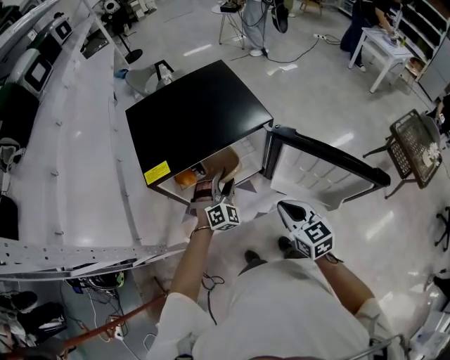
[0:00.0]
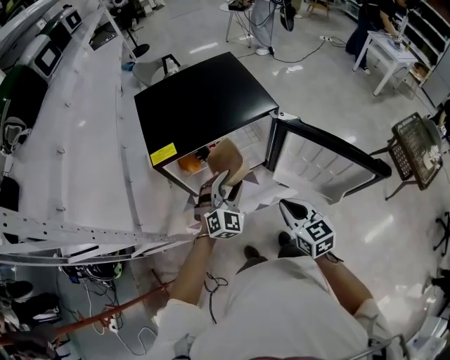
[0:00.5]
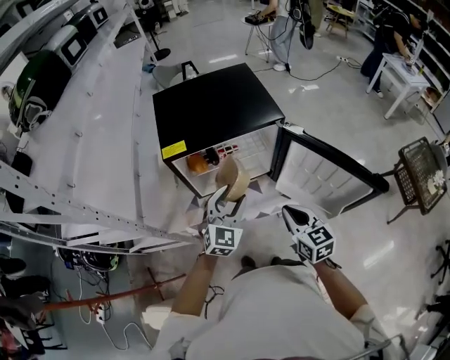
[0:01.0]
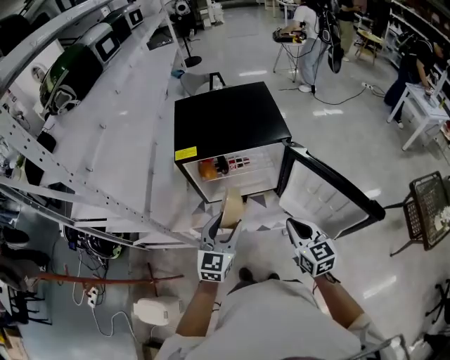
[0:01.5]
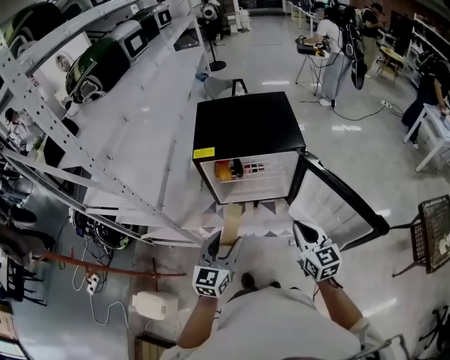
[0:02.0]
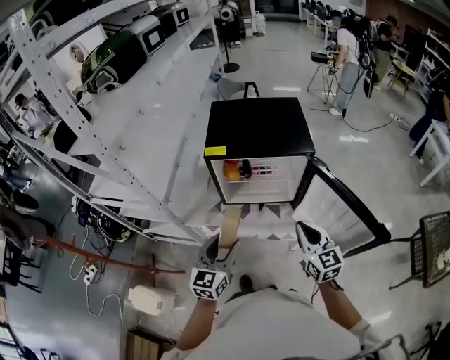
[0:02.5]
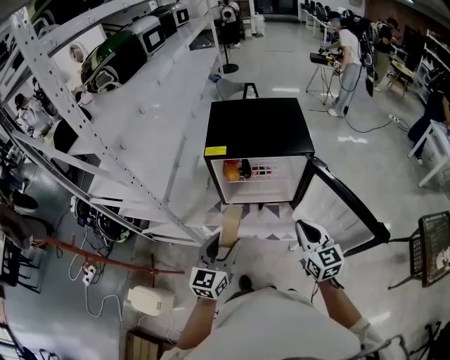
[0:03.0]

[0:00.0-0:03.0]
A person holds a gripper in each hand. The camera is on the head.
0:00.0 to 0:01.5: The right gripper moves about 5 cm; the left gripper goes roughly 25 cm backward and upward, and rolls counterclockwise, seen from behind, by some 60 degrees.
0:01.5 to 0:03.0: The left gripper travels backward and to the left by about 10 cm.

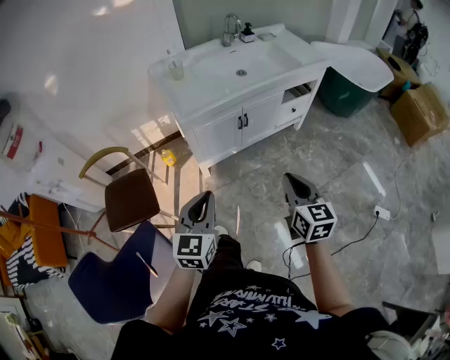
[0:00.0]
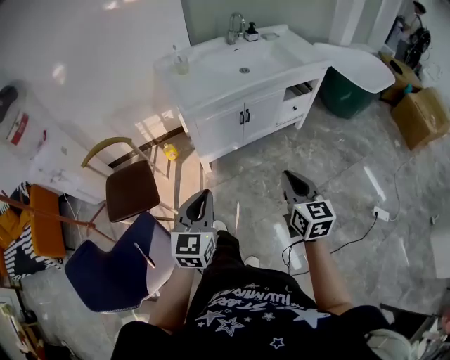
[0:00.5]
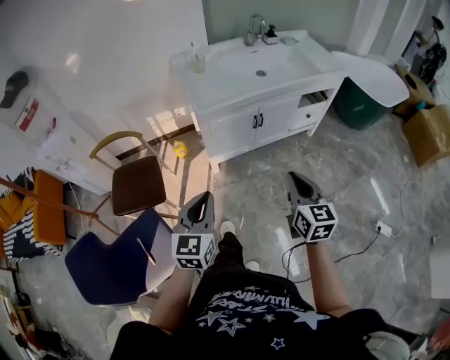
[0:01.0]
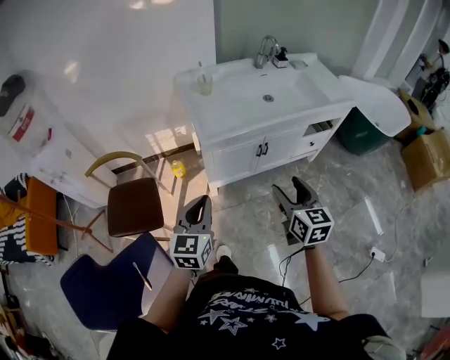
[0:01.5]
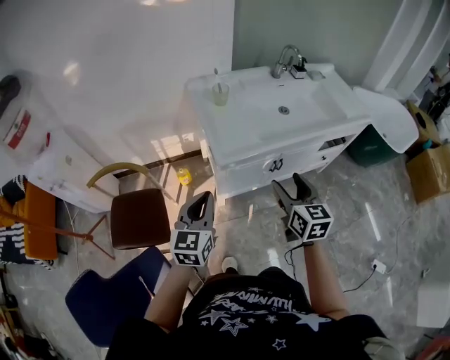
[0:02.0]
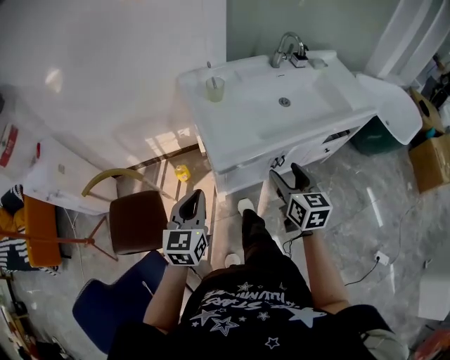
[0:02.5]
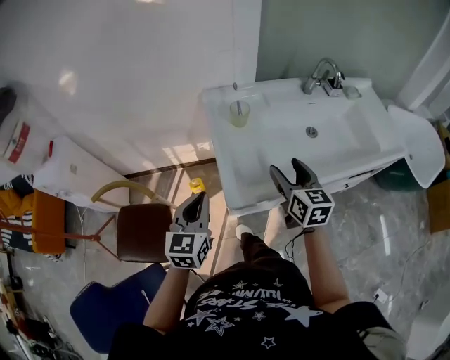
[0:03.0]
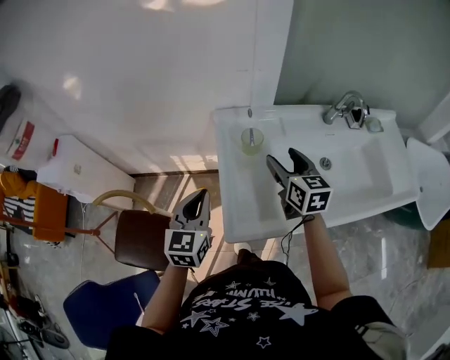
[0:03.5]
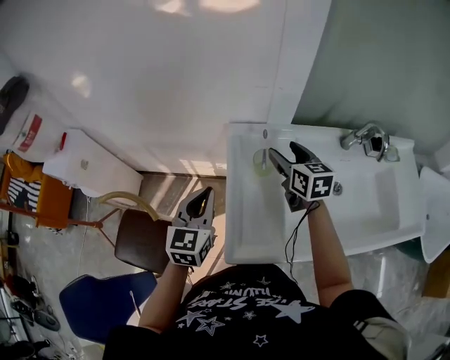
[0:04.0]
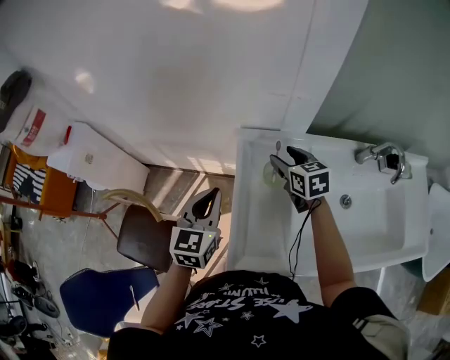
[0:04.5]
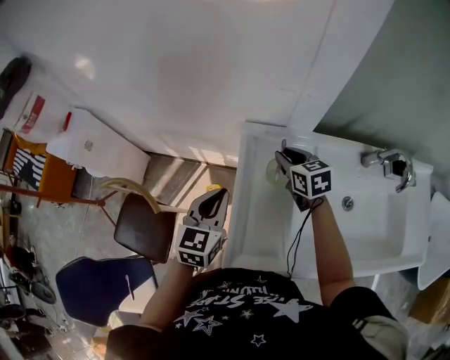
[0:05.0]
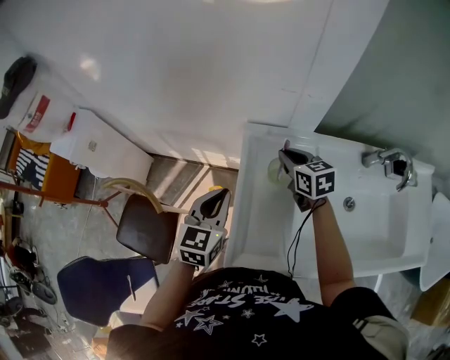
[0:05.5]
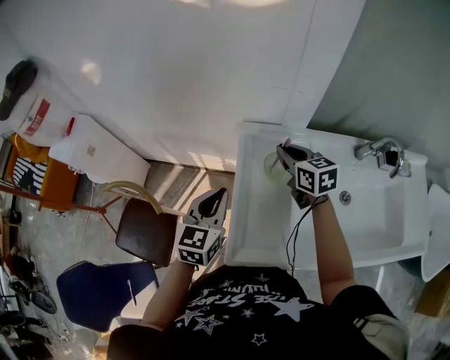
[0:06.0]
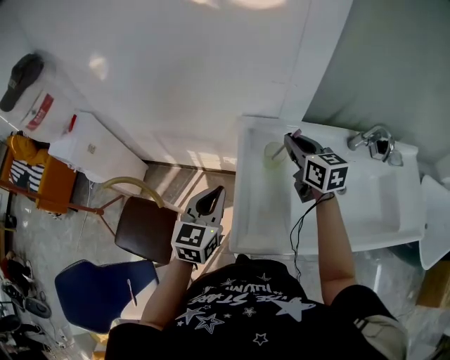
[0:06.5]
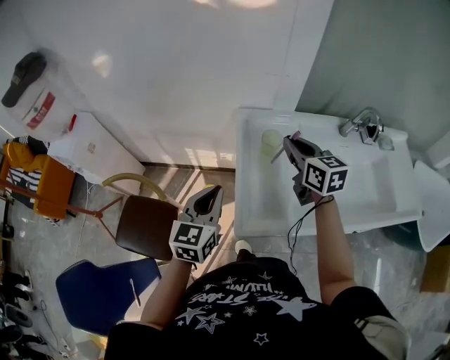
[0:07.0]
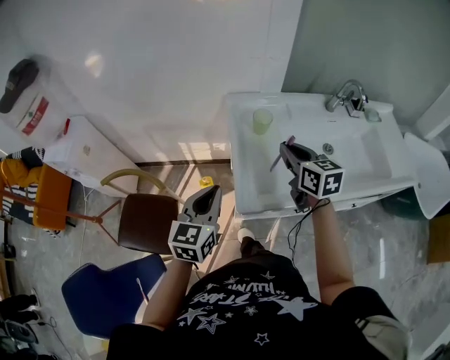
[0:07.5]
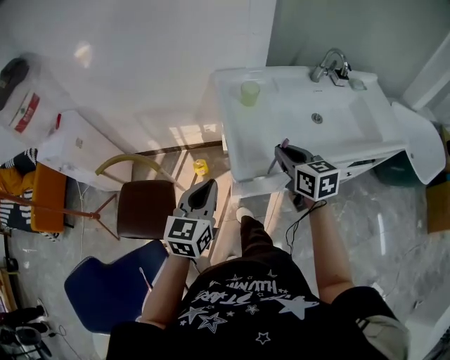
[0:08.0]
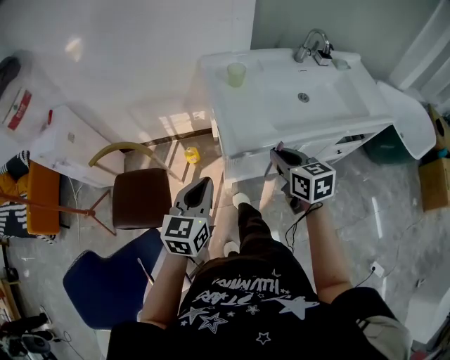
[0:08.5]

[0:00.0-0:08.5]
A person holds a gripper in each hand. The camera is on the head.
0:00.0 to 0:02.0: Both grippers travel together forward and to the left, roughly 25 cm. The right gripper opens its fingers.
0:02.0 to 0:04.0: Both grippers move forward, about 40 cm. The right gripper turns by about 30 degrees; the left gripper changes its angle by some 20 degrees.
0:04.0 to 0:06.5: The right gripper goes downward and returns, roughly 10 cm each way, and closes up.
0:06.5 to 0:08.5: The two grippers go some 35 cm backward.

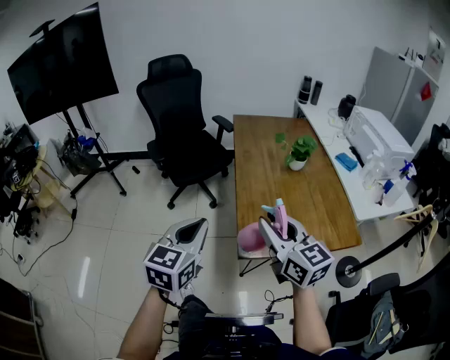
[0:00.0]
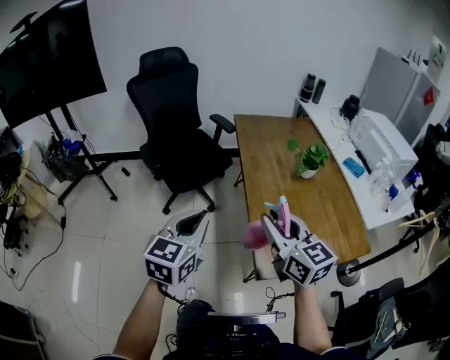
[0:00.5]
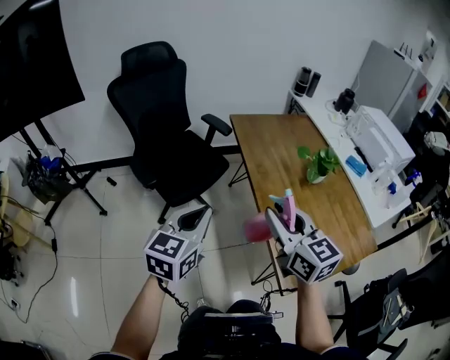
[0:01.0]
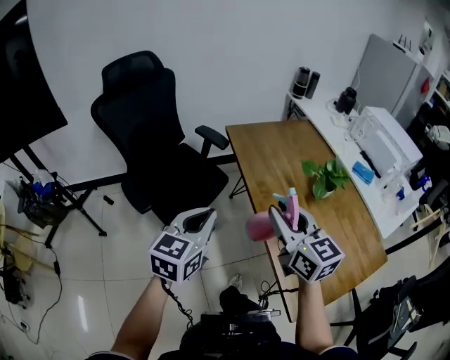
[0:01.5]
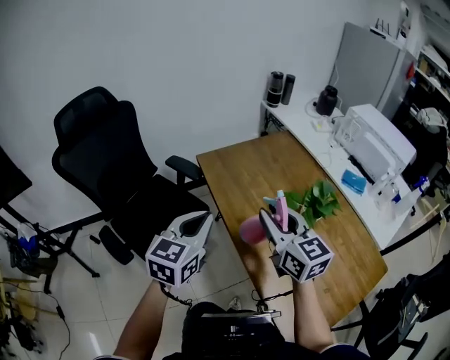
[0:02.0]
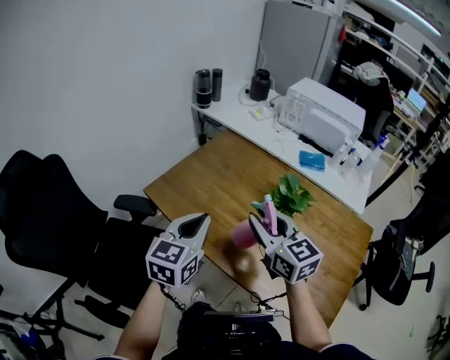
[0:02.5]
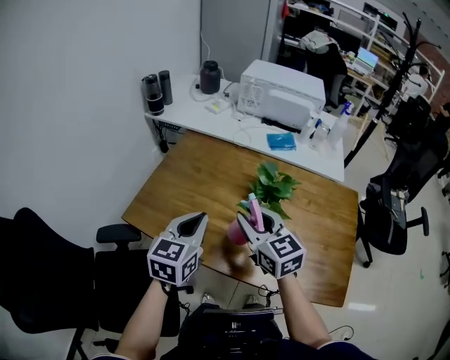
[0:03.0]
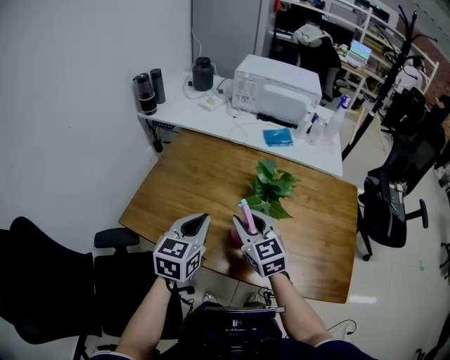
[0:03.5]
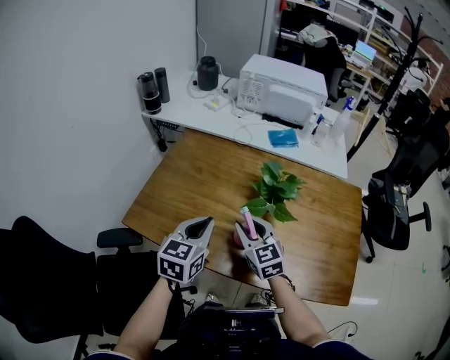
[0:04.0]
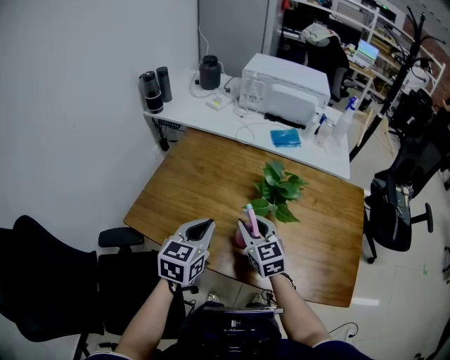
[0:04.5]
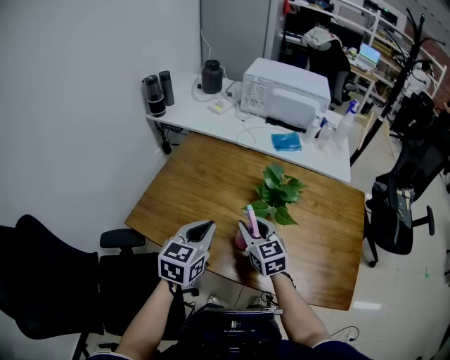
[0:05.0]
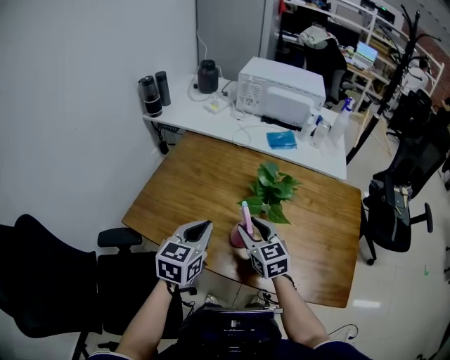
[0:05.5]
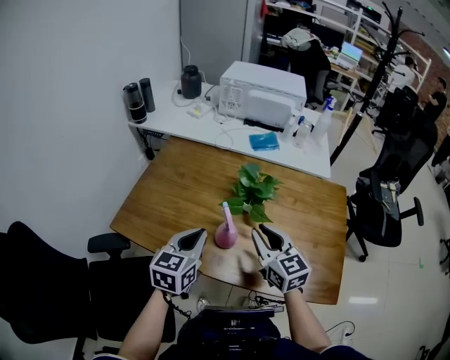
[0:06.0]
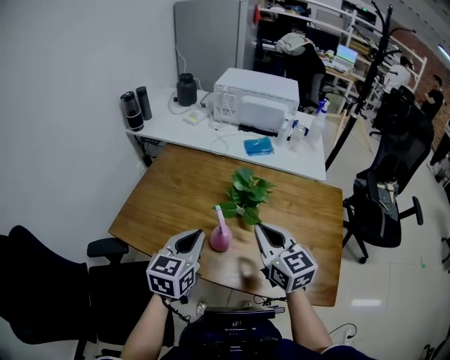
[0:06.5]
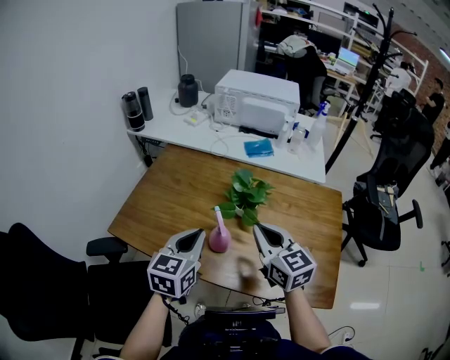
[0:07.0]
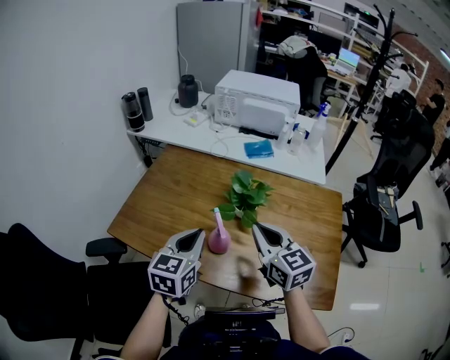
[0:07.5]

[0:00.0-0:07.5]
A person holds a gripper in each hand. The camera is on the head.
0:00.0 to 0:02.0: The two grippers travel together, approximately 50 cm. The right gripper changes its angle by approximately 30 degrees. Meanwhile the left gripper rotates approximately 30 degrees.
0:02.0 to 0:04.0: The right gripper shifts some 15 cm downward, and turns by some 50 degrees, while the left gripper ends up some 25 cm from where it was, and rotates roughly 40 degrees.
0:04.0 to 0:05.5: There are only small adjustments of the grippers.
0:05.5 to 0:07.5: The right gripper travels upward and to the right by about 15 cm, and closes its fingers, while the left gripper heads to the right, covering roughly 5 cm.

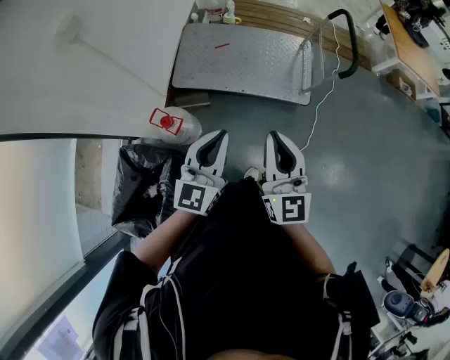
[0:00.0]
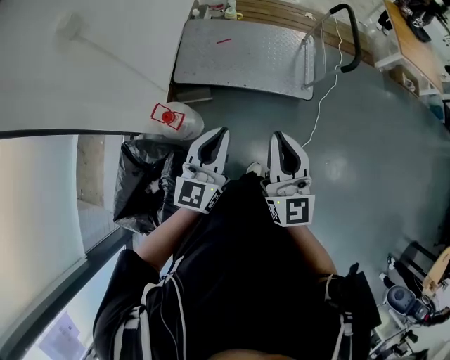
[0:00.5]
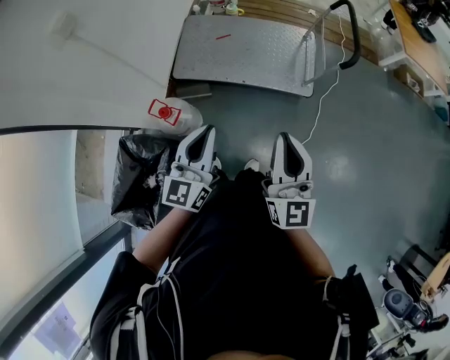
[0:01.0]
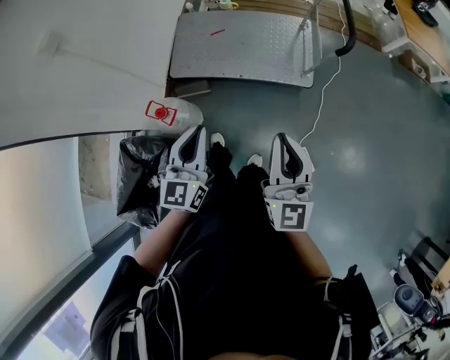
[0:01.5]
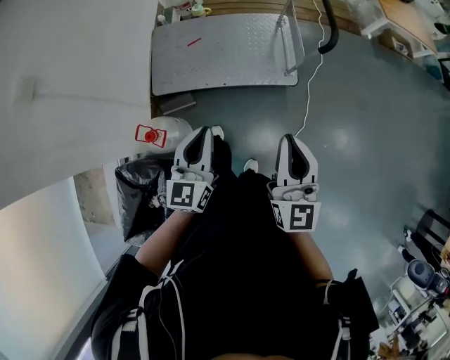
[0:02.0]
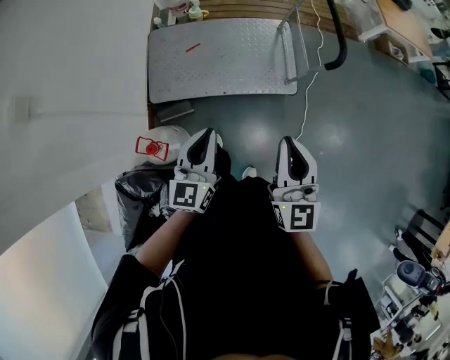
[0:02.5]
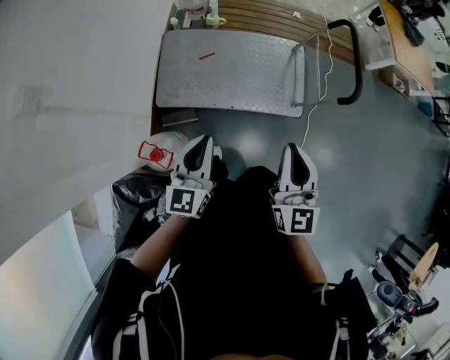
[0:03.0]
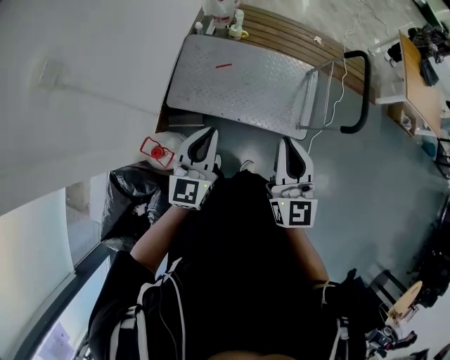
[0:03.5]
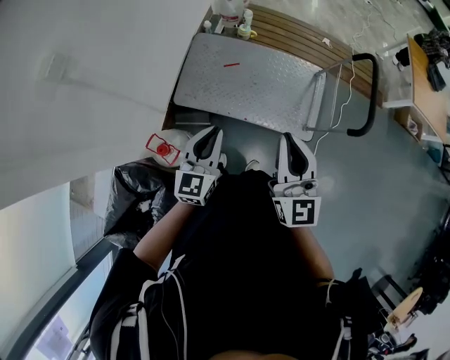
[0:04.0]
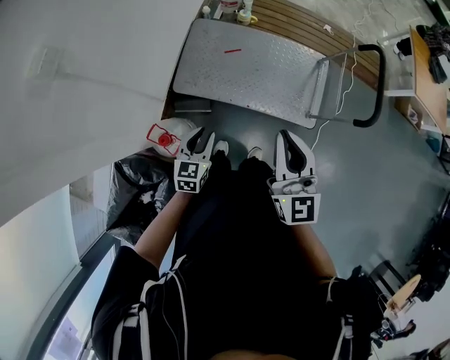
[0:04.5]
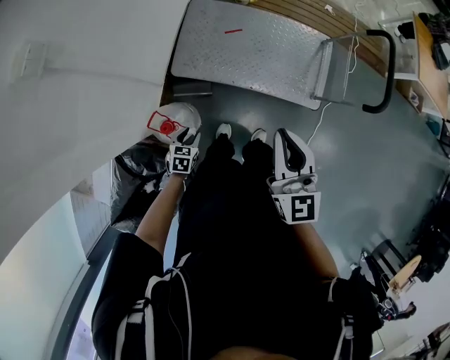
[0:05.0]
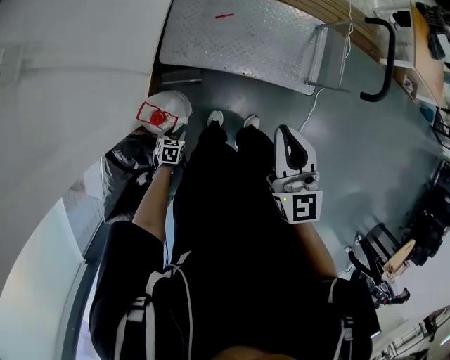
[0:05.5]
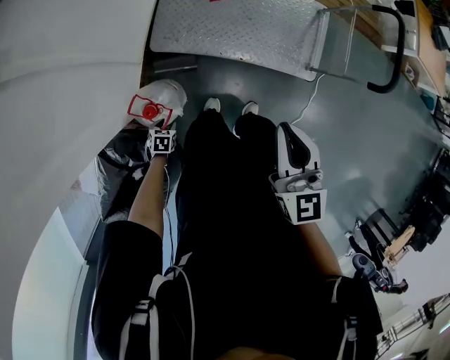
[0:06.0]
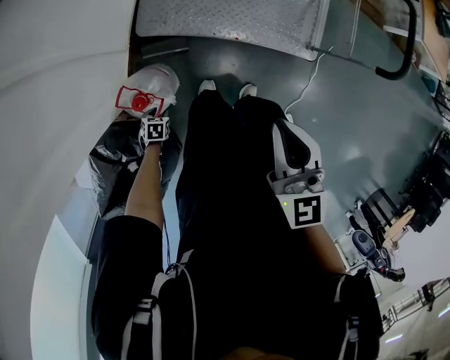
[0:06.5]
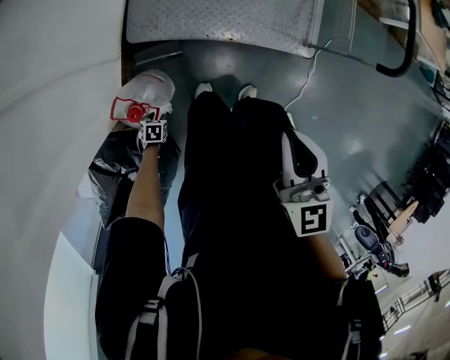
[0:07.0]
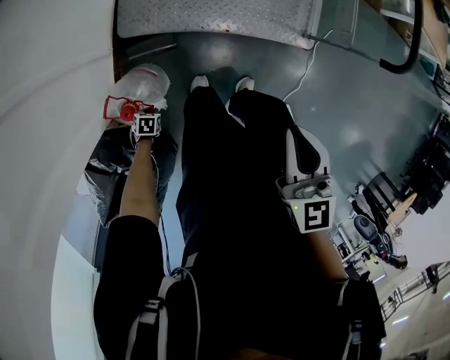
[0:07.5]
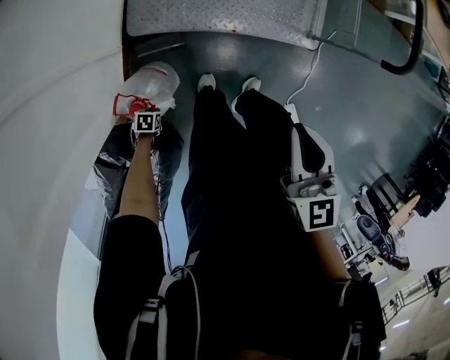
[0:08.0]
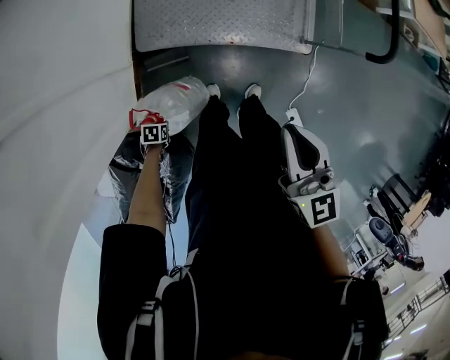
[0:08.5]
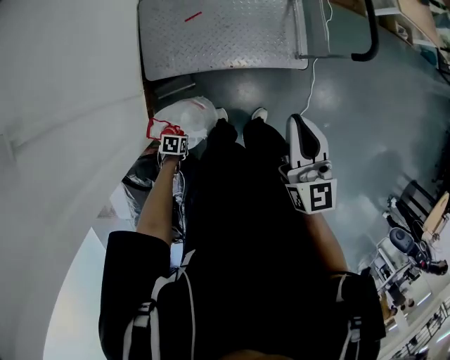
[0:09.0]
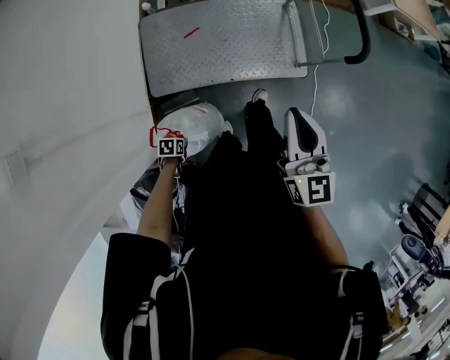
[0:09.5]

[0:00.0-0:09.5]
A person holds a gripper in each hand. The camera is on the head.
0:00.0 to 0:02.0: The left gripper travels forward, to the right and downward by approximately 10 cm; the right gripper shifts about 15 cm to the right.
0:02.0 to 0:04.0: The grippers both shift forward and to the left by approximately 25 cm. The right gripper changes its angle by roughly 20 degrees.
0:04.0 to 0:05.5: The right gripper is displaced to the left and downward by approximately 10 cm. Meanwhile the left gripper travels downward and to the left by some 50 cm, tips its fingers downward by approximately 60 degrees, and opens up.
0:05.5 to 0:07.5: The two grippers go some 15 cm downward. The left gripper closes.
0:07.5 to 0:09.5: Both grippers travel together upward, roughly 15 cm. The right gripper changes its angle by approximately 30 degrees.
